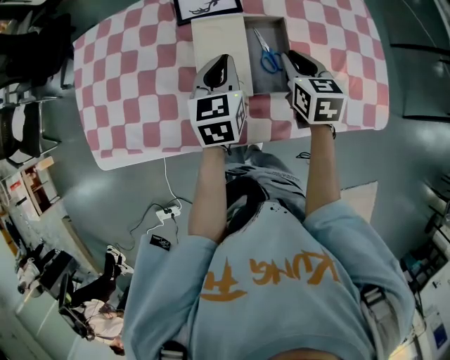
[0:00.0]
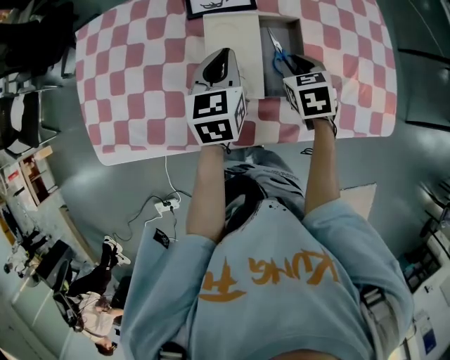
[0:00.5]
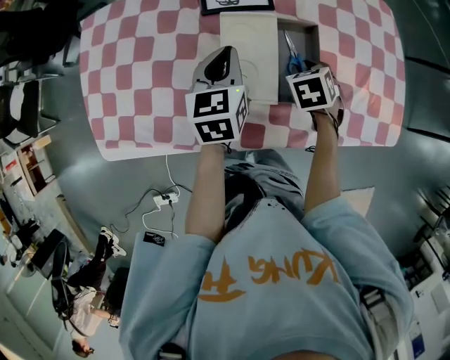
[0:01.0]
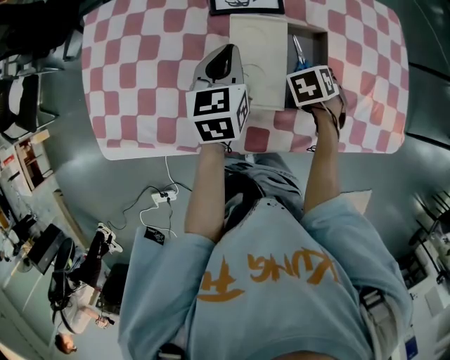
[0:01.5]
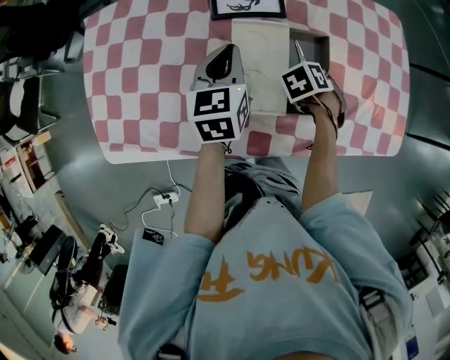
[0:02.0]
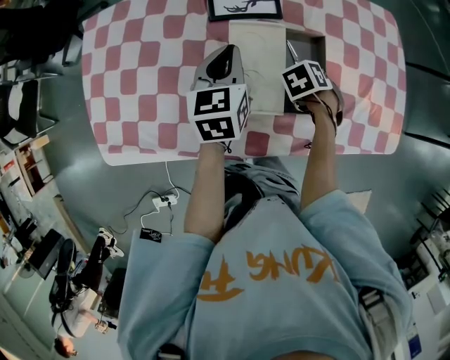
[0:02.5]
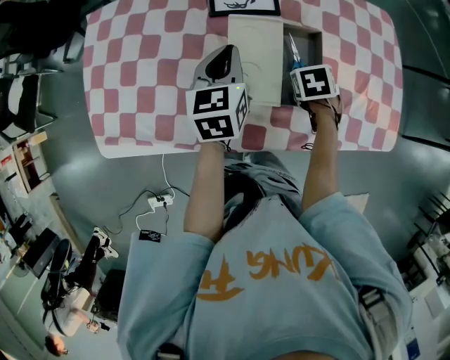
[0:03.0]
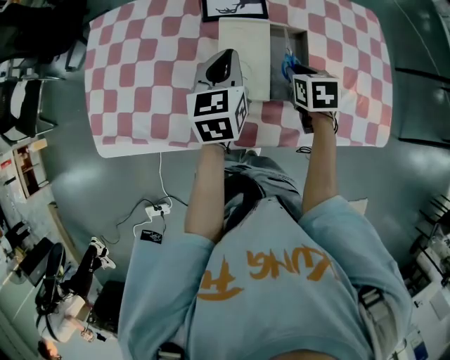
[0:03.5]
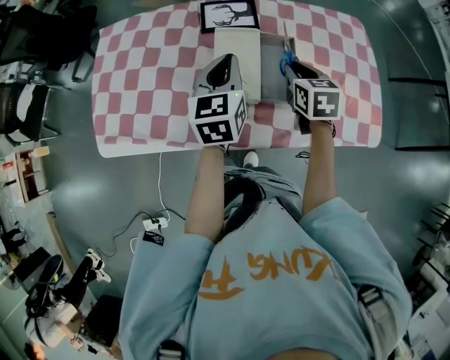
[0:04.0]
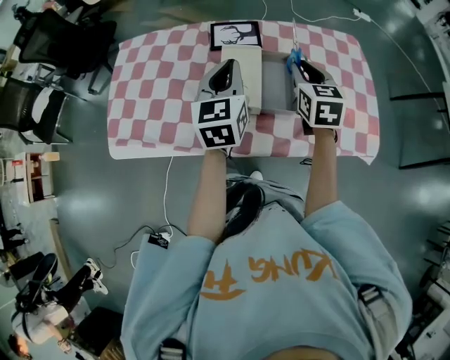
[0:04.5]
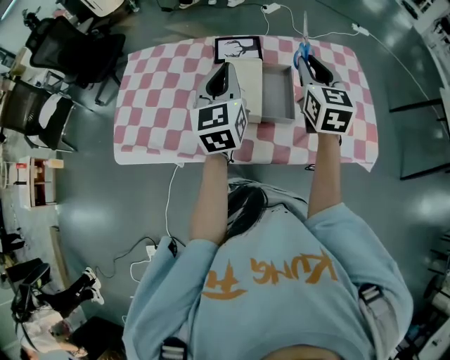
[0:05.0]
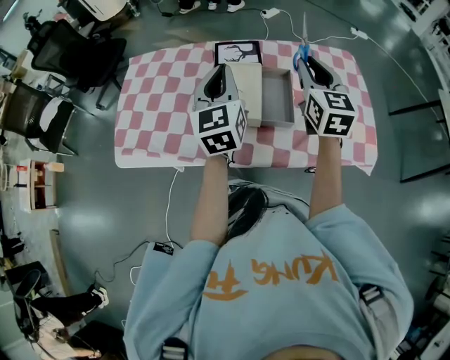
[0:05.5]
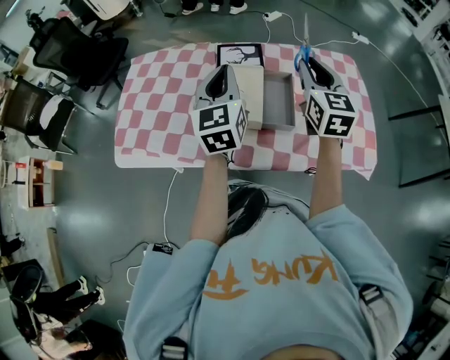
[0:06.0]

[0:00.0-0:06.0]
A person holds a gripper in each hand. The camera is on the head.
0:00.0 to 0:02.0: The left gripper ends up approximately 10 cm from where it was; the right gripper travels downward by about 10 cm, and tips its fingers downward by some 40 degrees.
0:02.0 to 0:04.0: The left gripper shifts by approximately 15 cm. The right gripper is displaced upward by approximately 15 cm, and tips its fingers upward by approximately 40 degrees.
0:04.0 to 0:06.0: The left gripper goes some 10 cm upward; the right gripper is displaced upward by approximately 20 cm, and tips its fingers upward by roughly 30 degrees.

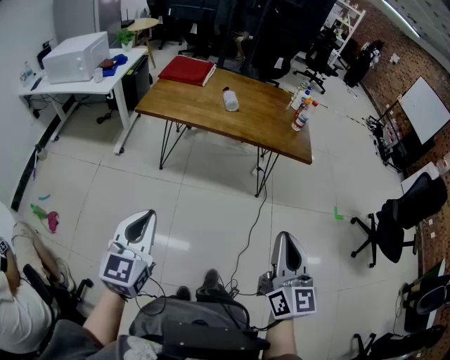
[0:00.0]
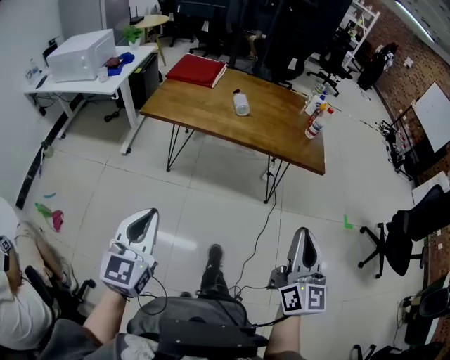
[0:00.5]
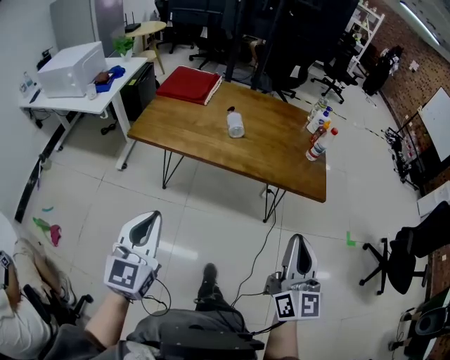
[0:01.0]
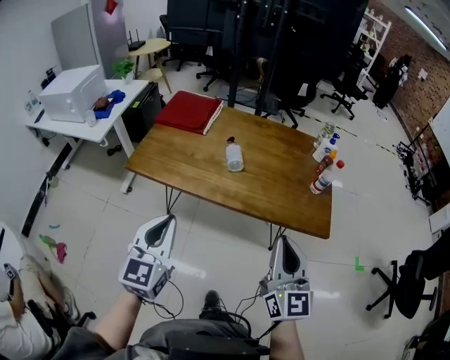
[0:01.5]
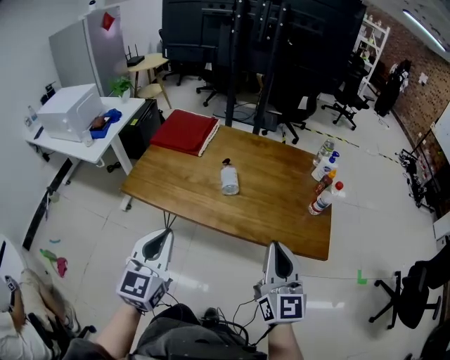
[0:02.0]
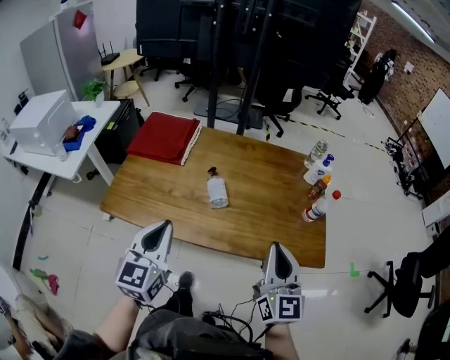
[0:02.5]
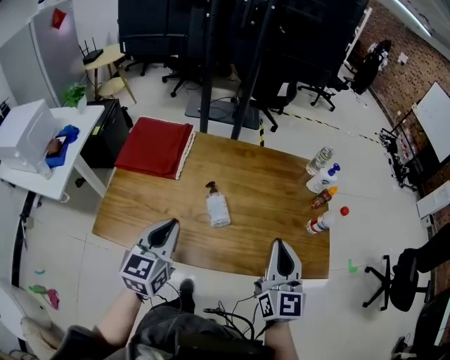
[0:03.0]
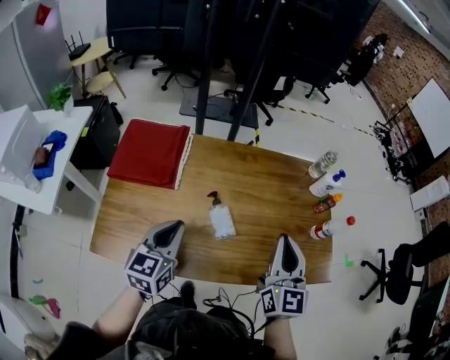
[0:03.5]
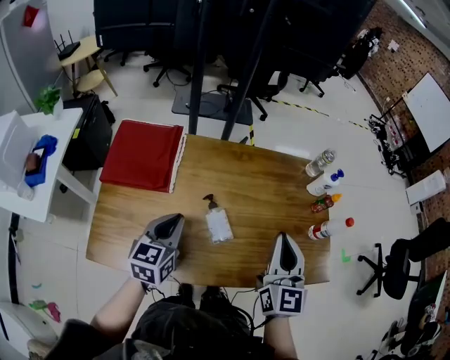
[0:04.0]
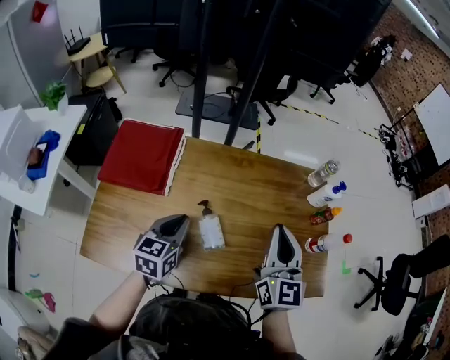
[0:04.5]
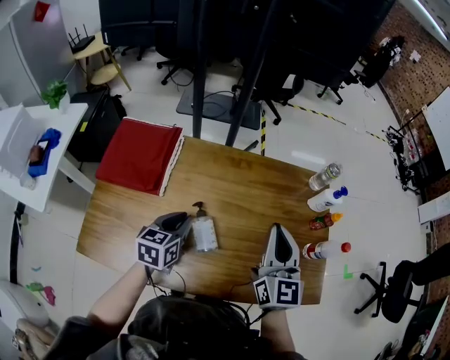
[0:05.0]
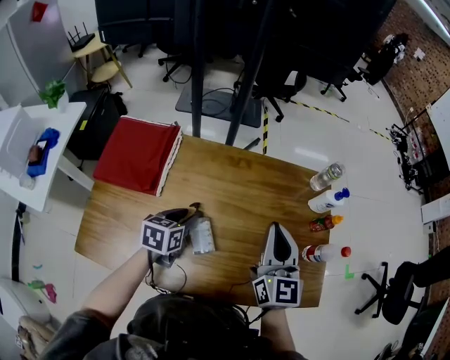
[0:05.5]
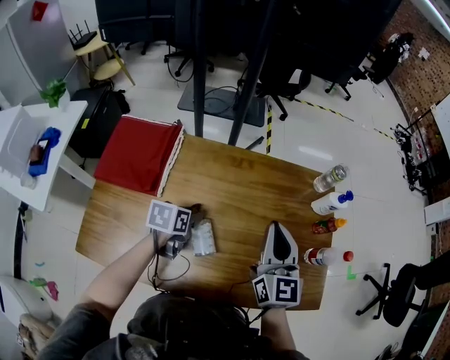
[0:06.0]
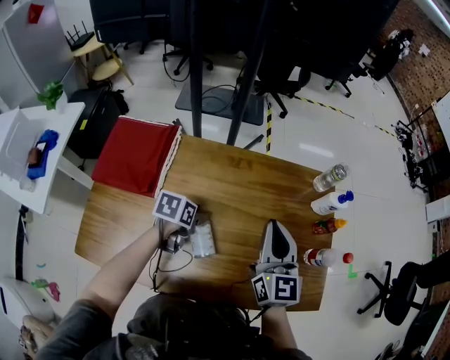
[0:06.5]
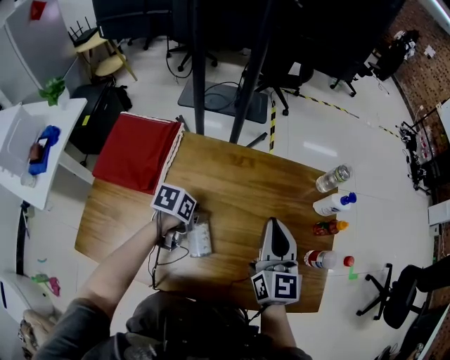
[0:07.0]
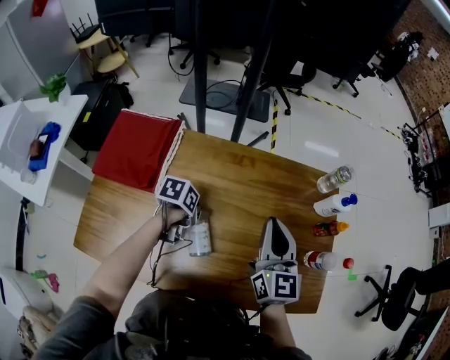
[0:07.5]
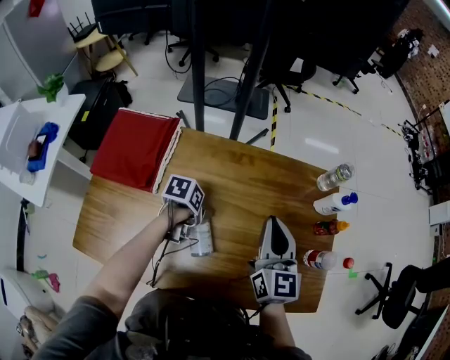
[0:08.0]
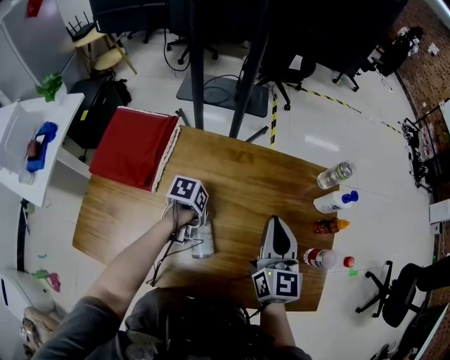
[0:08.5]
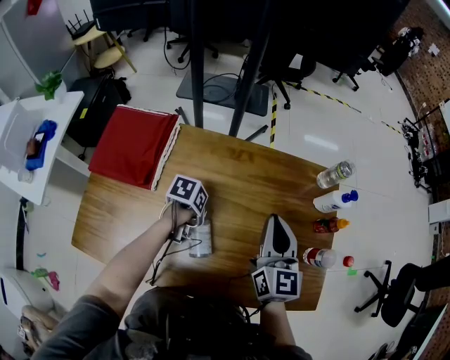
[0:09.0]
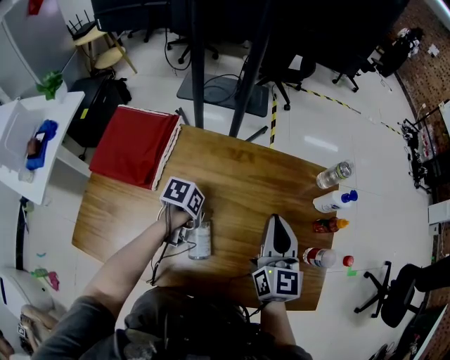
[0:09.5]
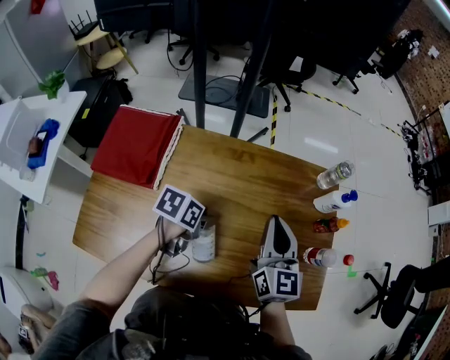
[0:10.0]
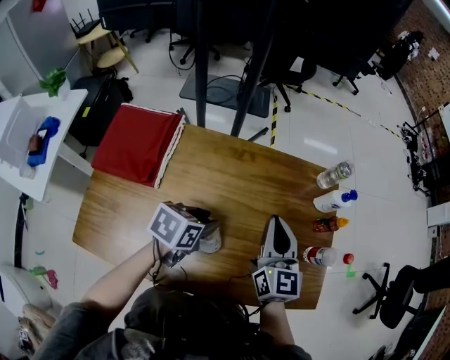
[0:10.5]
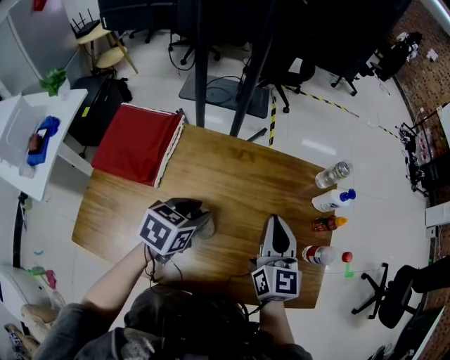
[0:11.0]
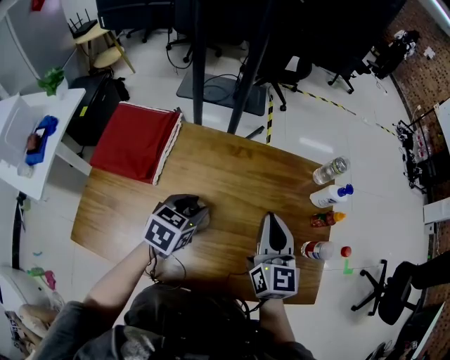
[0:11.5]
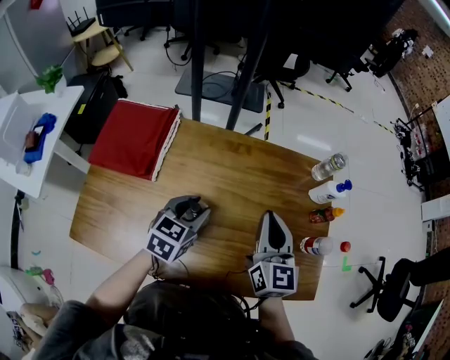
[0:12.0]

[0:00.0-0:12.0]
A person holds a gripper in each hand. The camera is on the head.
0:00.0 to 0:02.0: Both grippers are carried forward, roughly 50 cm.
0:02.0 to 0:04.0: Both grippers move forward, approximately 40 cm. The left gripper rotates about 30 degrees, while the right gripper rotates roughly 20 degrees.
0:04.0 to 0:06.0: The left gripper shifts roughly 20 cm forward, downward and to the right, turns by approximately 40 degrees, and opens its fingers. Meanwhile the right gripper shifts some 15 cm forward.
0:06.0 to 0:08.0: The left gripper goes roughly 5 cm downward, and rotates some 20 degrees. Meanwhile the right gripper changes place by some 5 cm.
0:08.0 to 0:10.0: The left gripper shifts roughly 5 cm upward.
0:10.0 to 0:12.0: The left gripper shifts about 5 cm upward, and changes its angle by approximately 40 degrees.

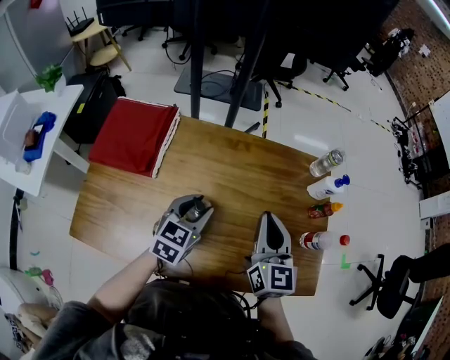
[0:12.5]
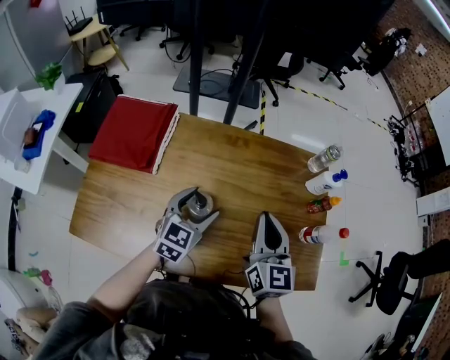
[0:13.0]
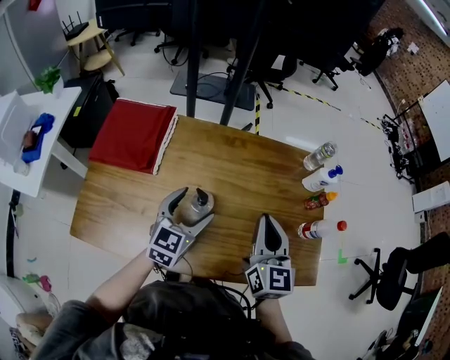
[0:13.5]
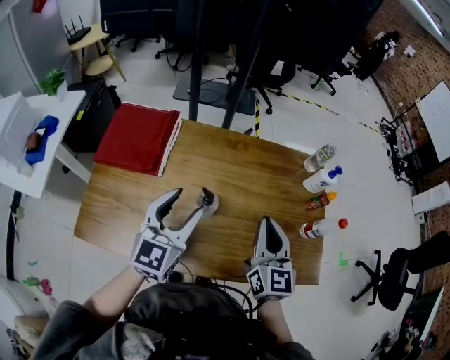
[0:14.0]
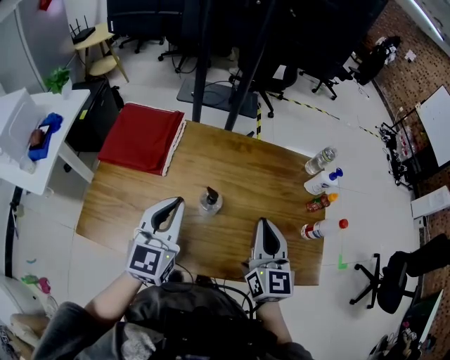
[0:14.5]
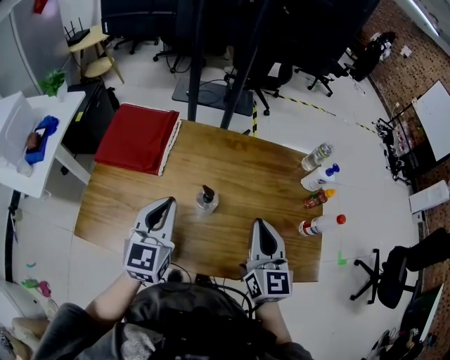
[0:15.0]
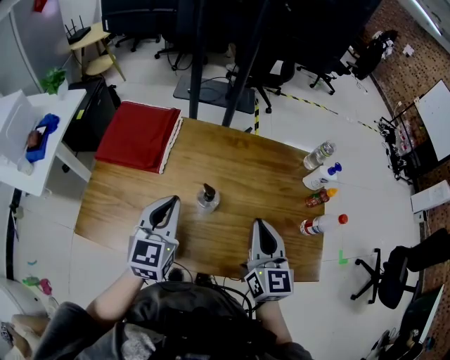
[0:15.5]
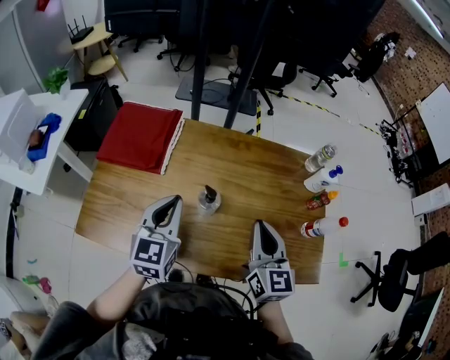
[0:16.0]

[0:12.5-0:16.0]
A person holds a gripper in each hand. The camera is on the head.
0:12.5 to 0:14.5: The right gripper moves backward, some 10 cm, while the left gripper is displaced upward, backward and to the left by about 20 cm, swivels approximately 30 degrees, and opens, then closes once more.
0:14.5 to 0:16.0: The grippers stay close to where they were, moving slightly.

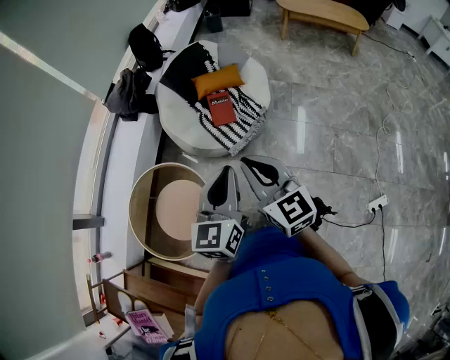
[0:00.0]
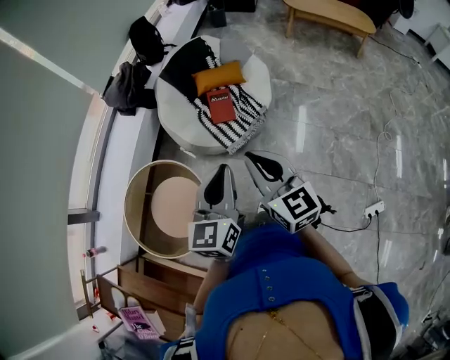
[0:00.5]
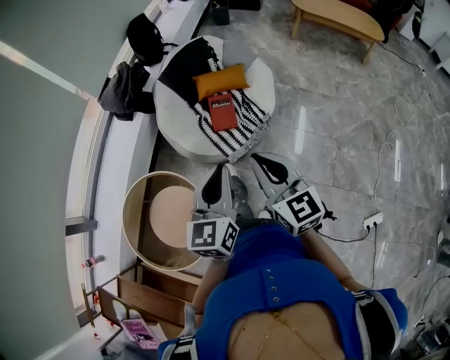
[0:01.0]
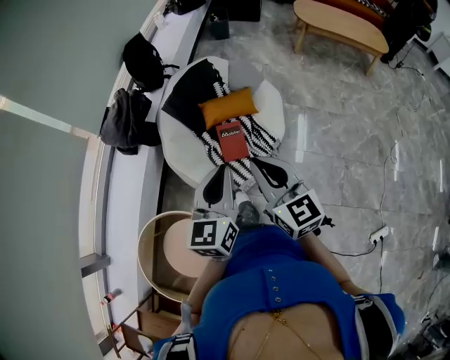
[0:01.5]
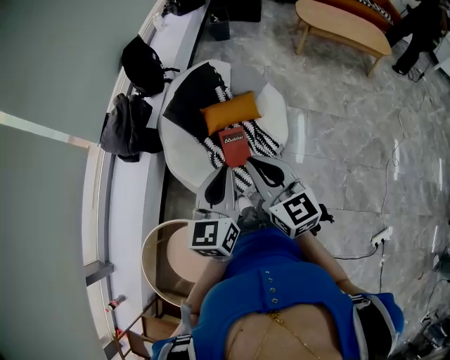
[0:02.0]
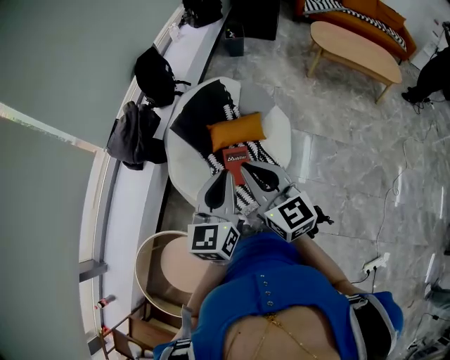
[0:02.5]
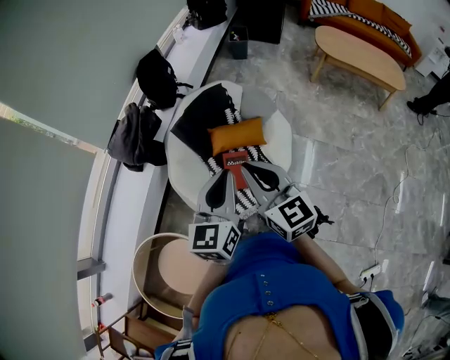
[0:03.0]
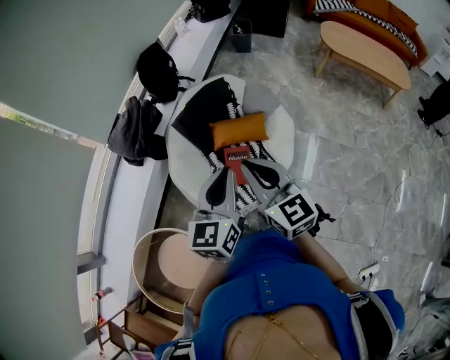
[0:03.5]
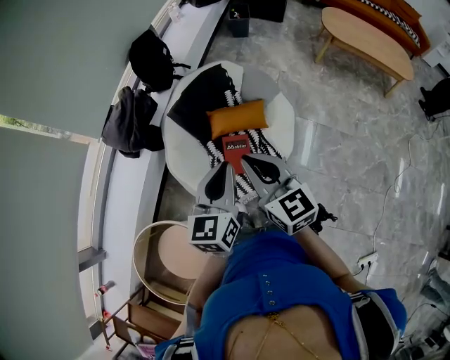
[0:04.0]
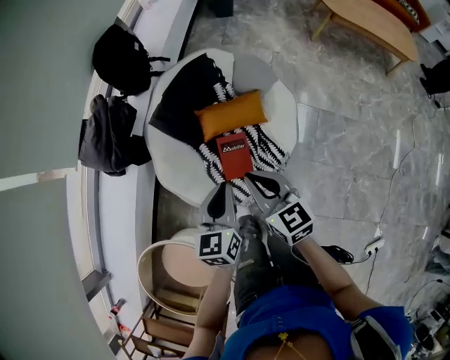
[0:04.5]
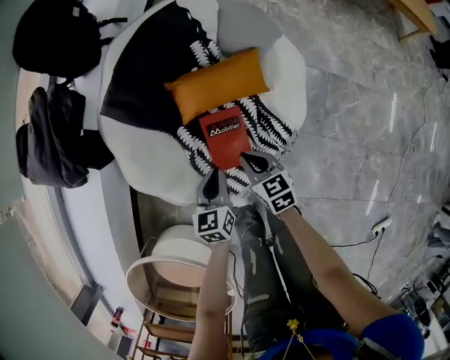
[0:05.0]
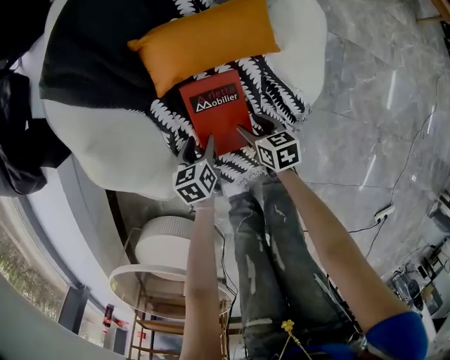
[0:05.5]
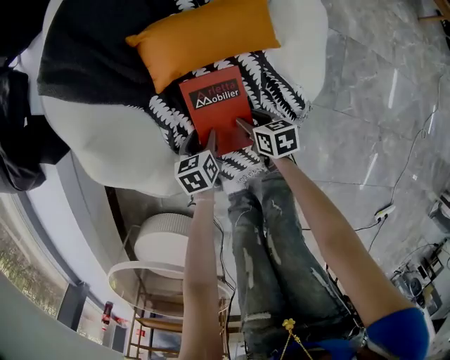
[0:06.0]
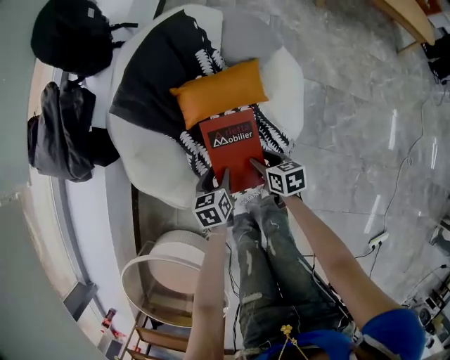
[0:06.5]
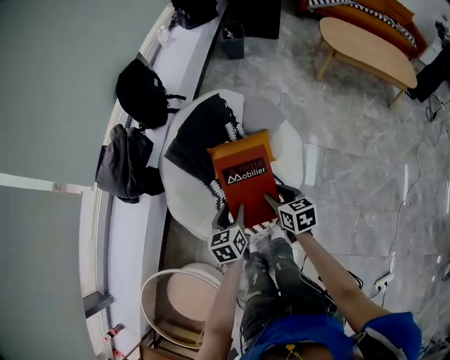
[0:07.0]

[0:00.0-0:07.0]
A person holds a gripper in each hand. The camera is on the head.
0:00.0 to 0:02.0: The two grippers travel together, forward, roughly 40 cm.
0:02.0 to 0:03.5: The left gripper moves forward and to the right, about 10 cm; the right gripper travels forward by roughly 10 cm.
0:03.5 to 0:05.0: The grippers both shift downward by some 60 cm. The right gripper angles its fingers downward, by approximately 30 degrees; the left gripper changes its angle by some 30 degrees.
0:05.0 to 0:07.0: Both grippers move upward, roughly 25 cm. The left gripper opens up. Meanwhile the right gripper opens up.
